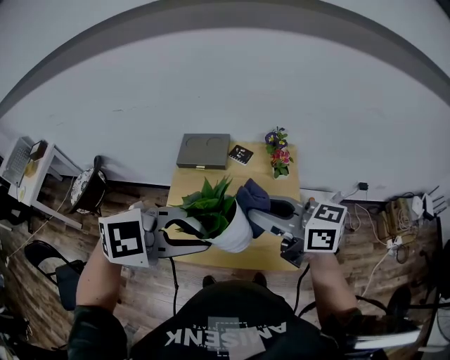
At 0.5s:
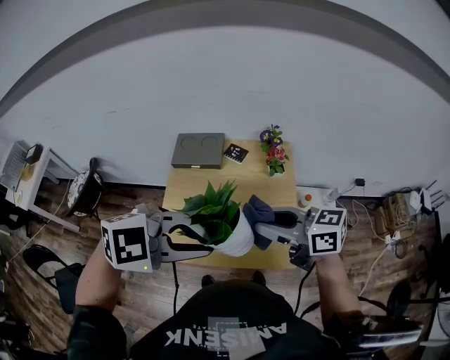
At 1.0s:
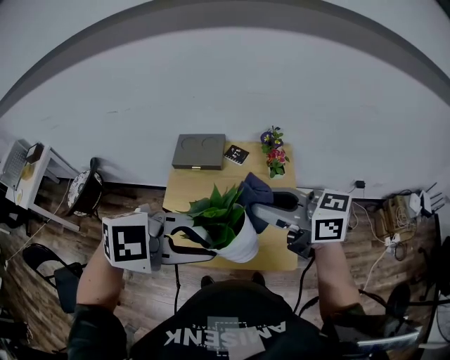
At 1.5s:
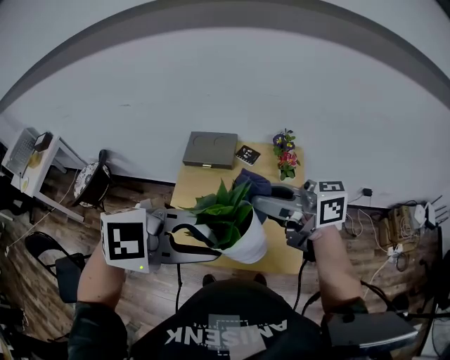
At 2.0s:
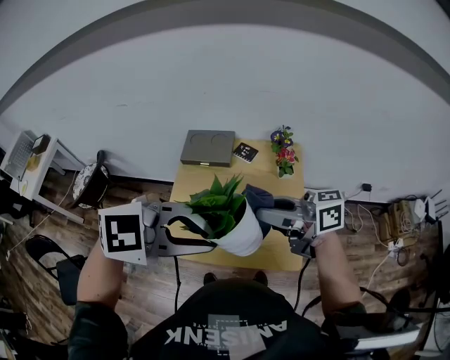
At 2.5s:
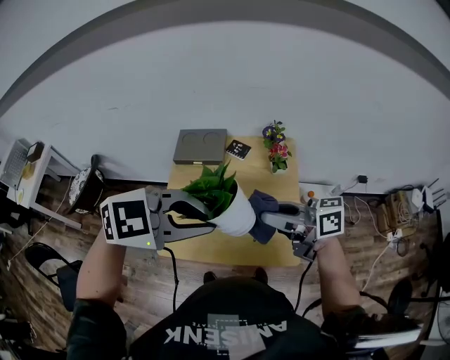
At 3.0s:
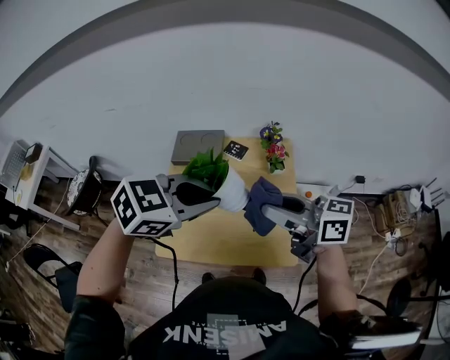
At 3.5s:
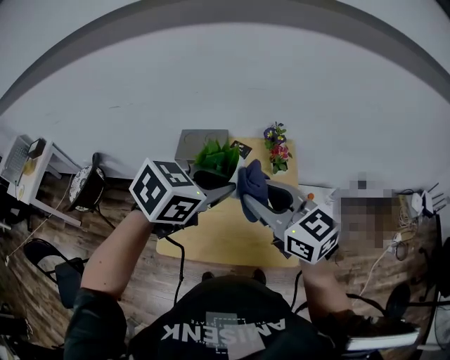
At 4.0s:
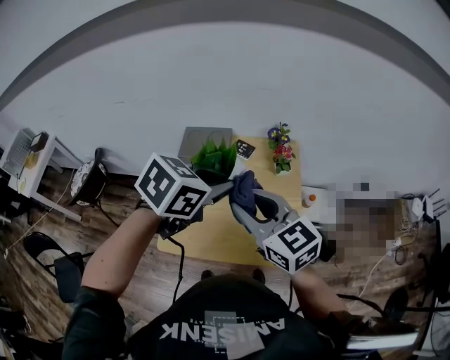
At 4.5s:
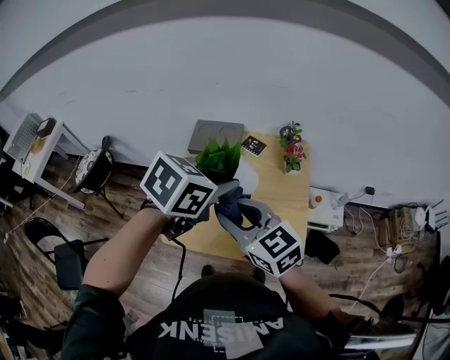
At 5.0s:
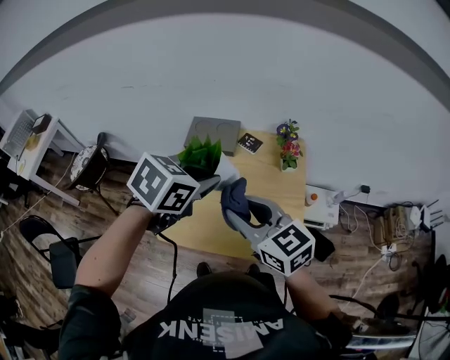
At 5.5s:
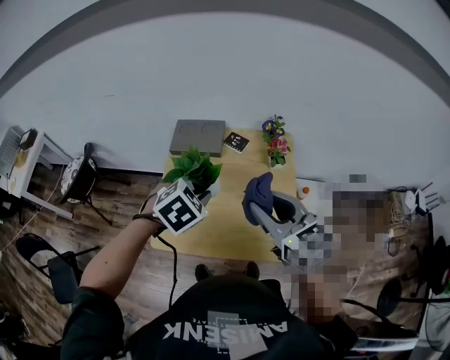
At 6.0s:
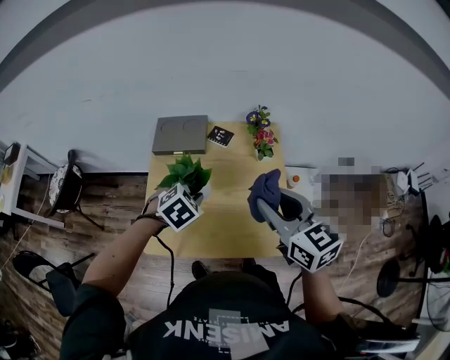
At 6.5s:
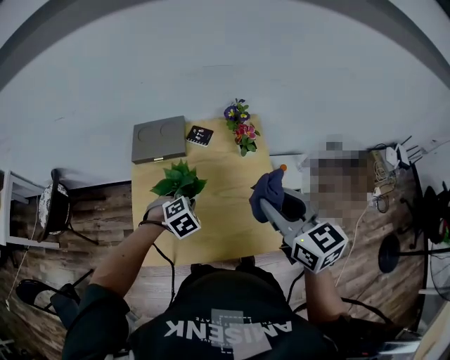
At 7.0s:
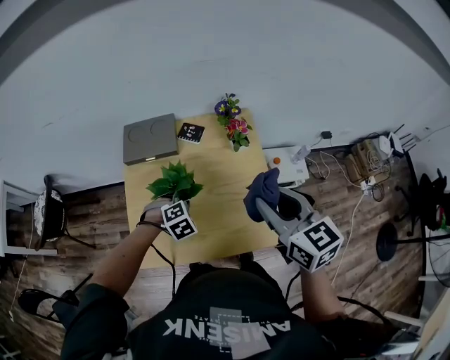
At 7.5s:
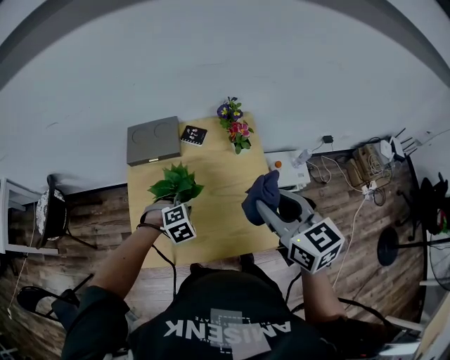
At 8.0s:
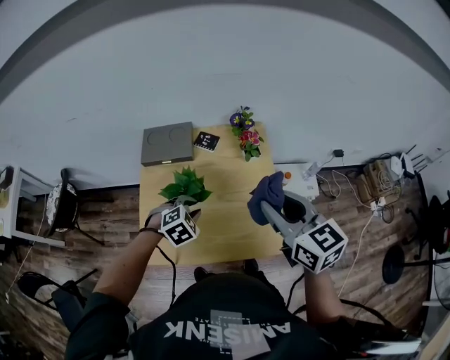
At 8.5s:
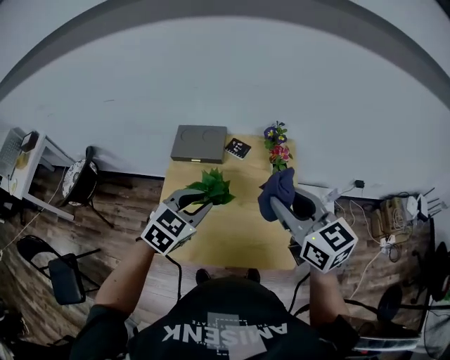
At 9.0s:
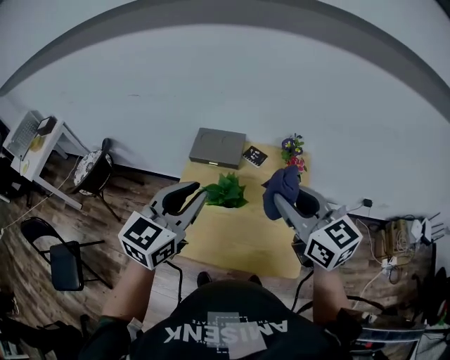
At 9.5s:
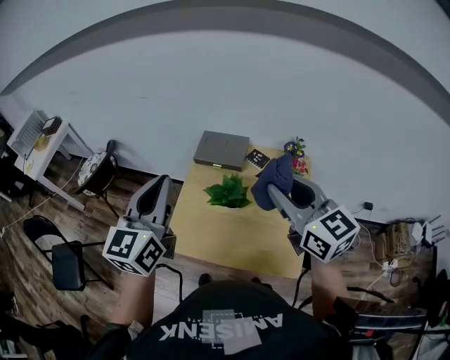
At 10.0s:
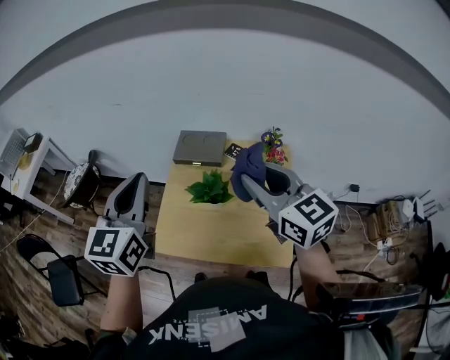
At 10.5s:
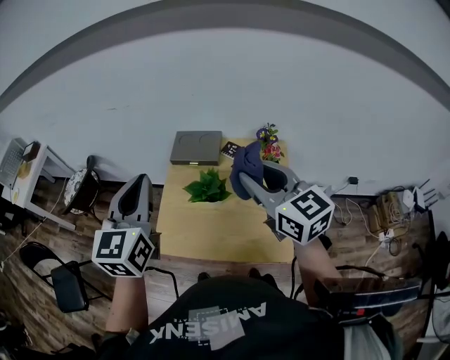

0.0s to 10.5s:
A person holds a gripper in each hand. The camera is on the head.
0.0s to 2.0s: The right gripper moves up and down over approximately 5 cm, changing direction 2 times, and turns by about 20 degrees.
2.0s to 4.0s: The right gripper changes its angle by approximately 50 degrees; the left gripper changes place by about 15 cm, and twists approximately 40 degrees counterclockwise, seen from behind.
4.0s to 6.5s: The right gripper heads to the right and downward, covering approximately 15 cm, and rotates approximately 20 degrees, while the left gripper is displaced downward by roughly 30 cm, and rotates about 40 degrees.
6.5s to 8.5s: The left gripper heads upward, covering some 20 cm, and turns by roughly 40 degrees. The right gripper moves about 5 cm.
8.5s to 10.5s: The left gripper moves upward and to the left, roughly 25 cm, angles its fingers upward, by approximately 30 degrees, and closes up. Meanwhile the right gripper goes roughly 10 cm to the left and upward.

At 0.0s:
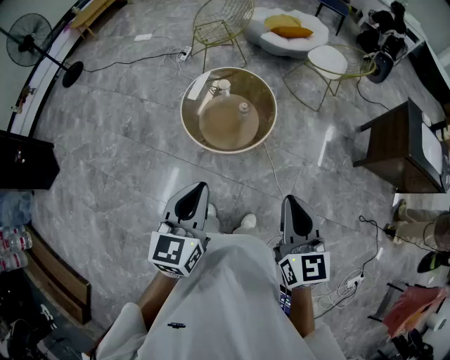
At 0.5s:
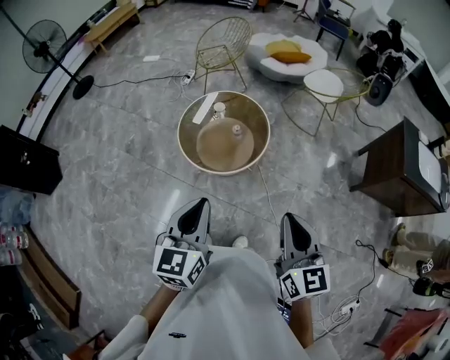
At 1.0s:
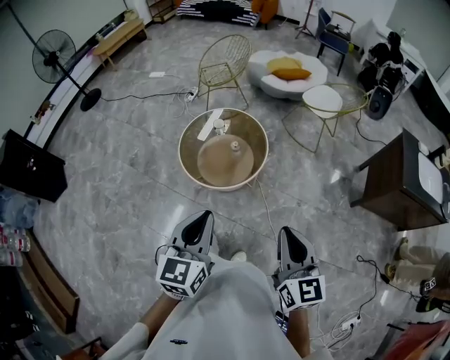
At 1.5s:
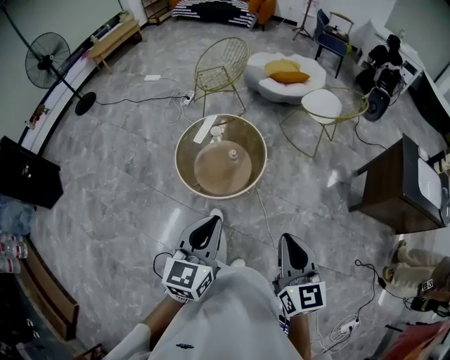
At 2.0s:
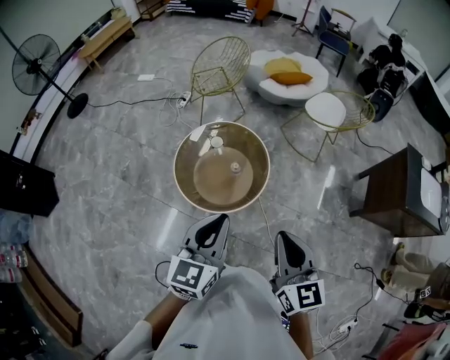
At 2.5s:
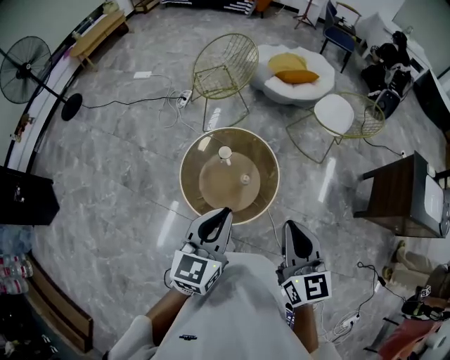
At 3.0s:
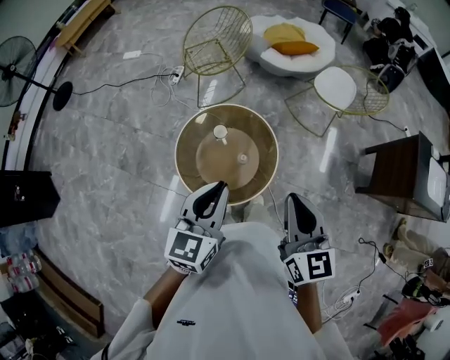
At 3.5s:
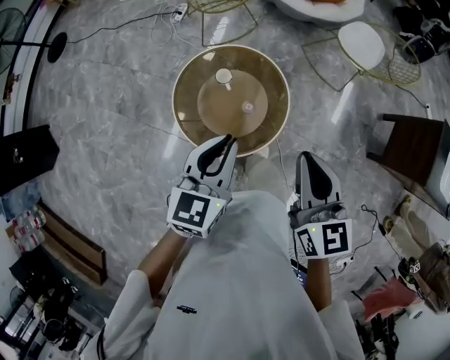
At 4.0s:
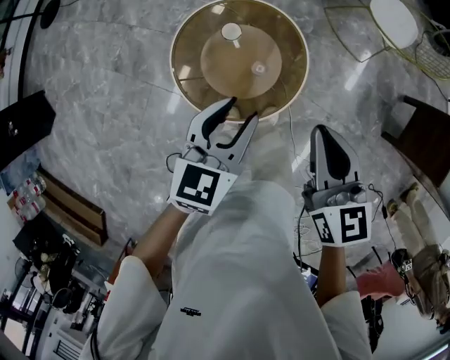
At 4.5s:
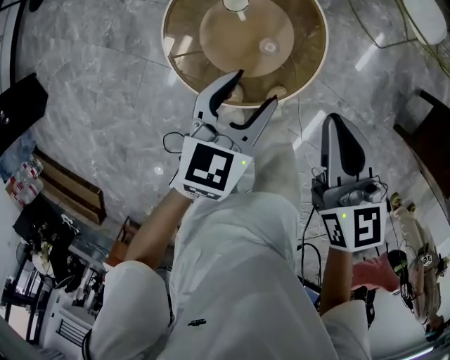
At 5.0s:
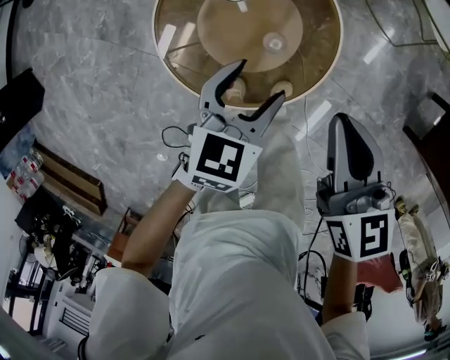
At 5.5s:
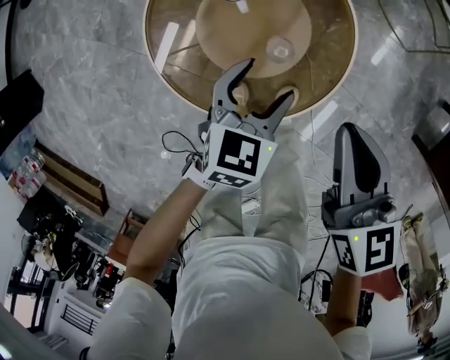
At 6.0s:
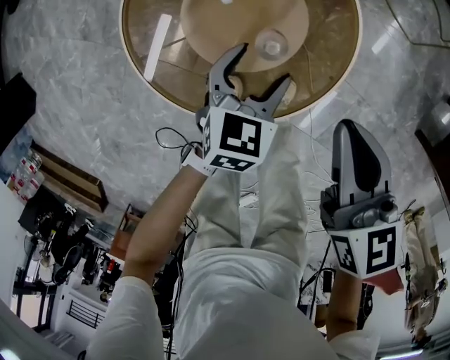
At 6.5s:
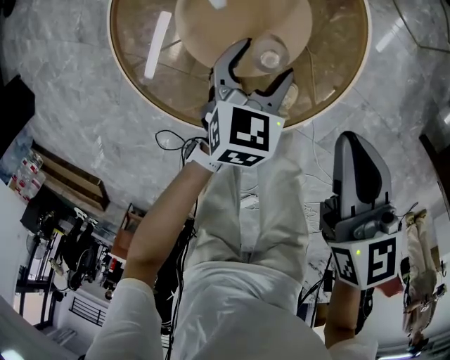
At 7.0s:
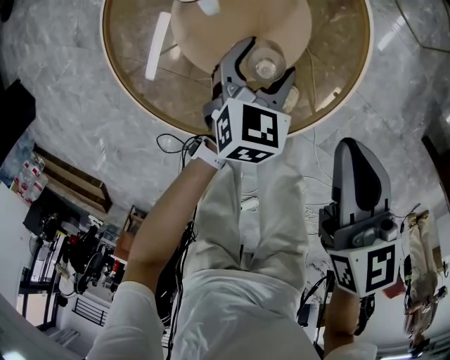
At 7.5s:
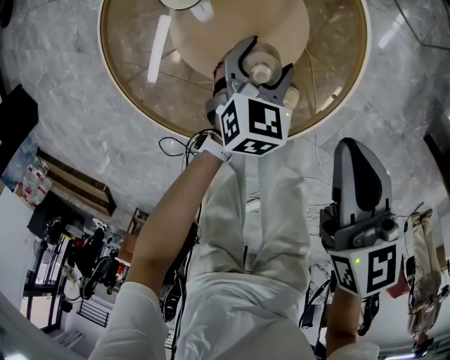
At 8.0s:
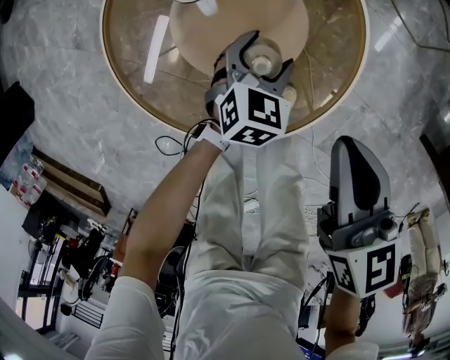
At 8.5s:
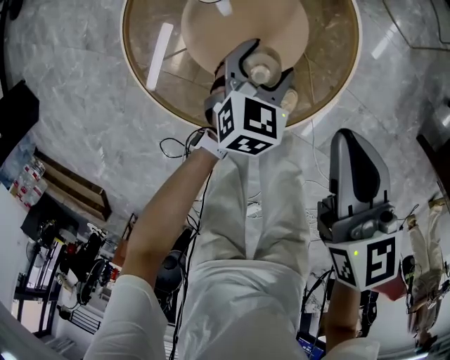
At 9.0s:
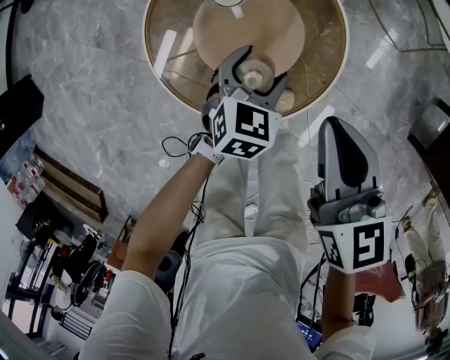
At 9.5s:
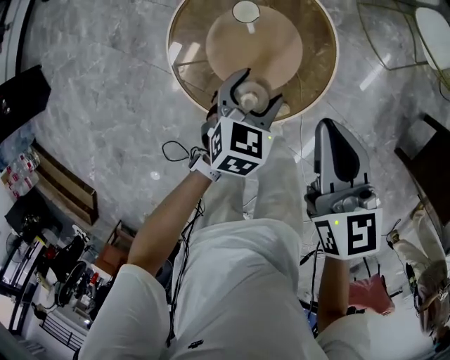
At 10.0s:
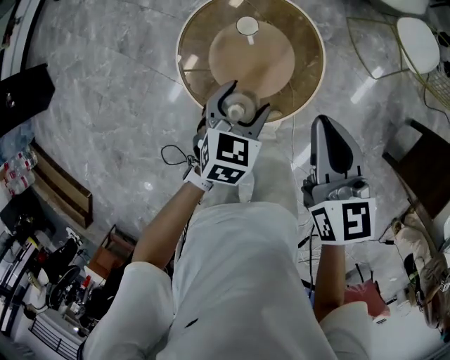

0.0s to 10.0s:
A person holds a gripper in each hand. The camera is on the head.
0.0s to 2.0s: The right gripper shifts some 15 cm forward. Meanwhile the left gripper goes some 15 cm forward and to the right.
2.0s to 4.0s: The grippers both shift forward and downward by roughly 25 cm. The left gripper opens.
4.0s to 6.0s: The two grippers go roughly 30 cm downward. The left gripper opens up.
6.0s to 8.0s: The left gripper goes approximately 10 cm downward.
8.0s to 10.0s: The two grippers go roughly 30 cm upward.

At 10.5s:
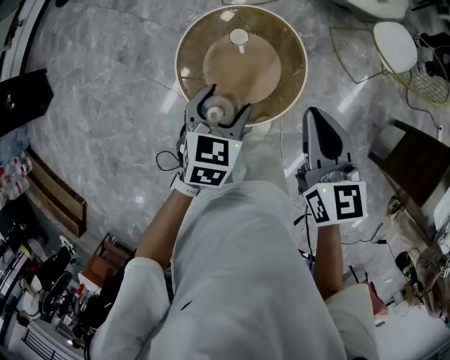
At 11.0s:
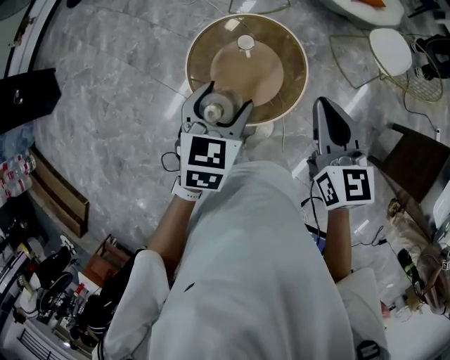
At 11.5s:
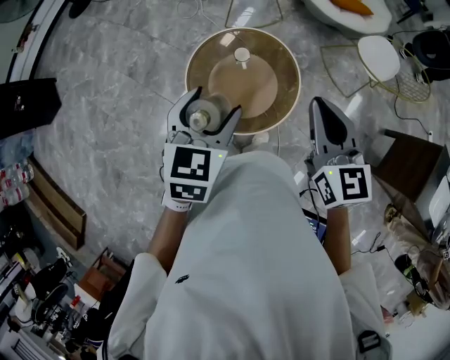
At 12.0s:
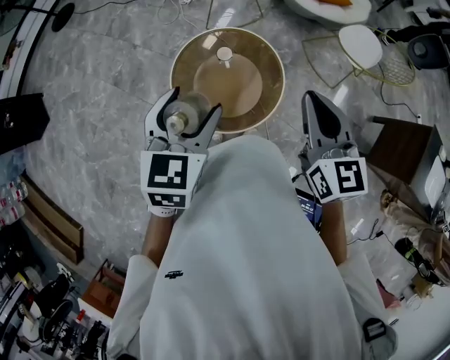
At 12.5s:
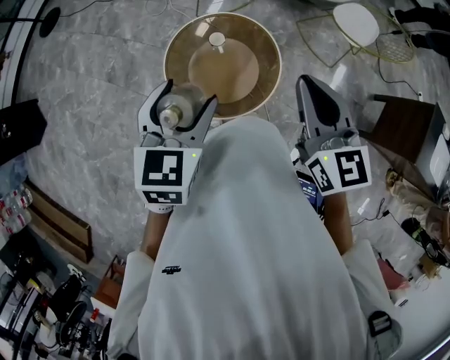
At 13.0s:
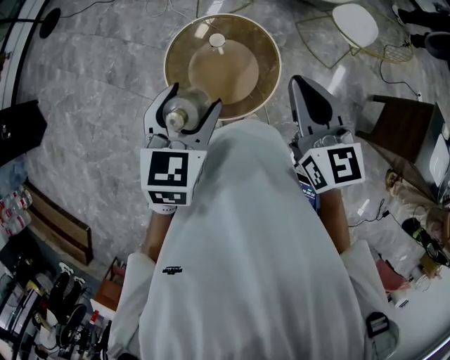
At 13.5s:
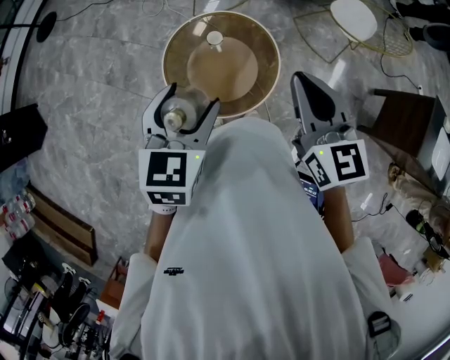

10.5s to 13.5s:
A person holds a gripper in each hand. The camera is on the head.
10.5s to 12.0s: The left gripper moves upward, roughly 20 cm. Meanwhile the right gripper shifts roughly 10 cm upward.
12.0s to 13.5s: The grippers make only small movements.

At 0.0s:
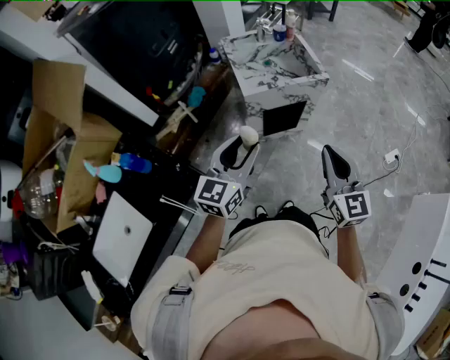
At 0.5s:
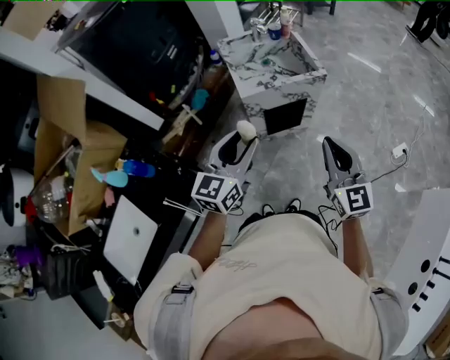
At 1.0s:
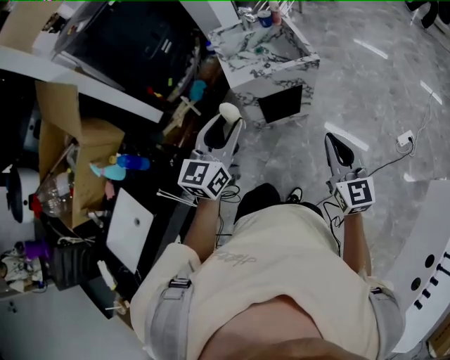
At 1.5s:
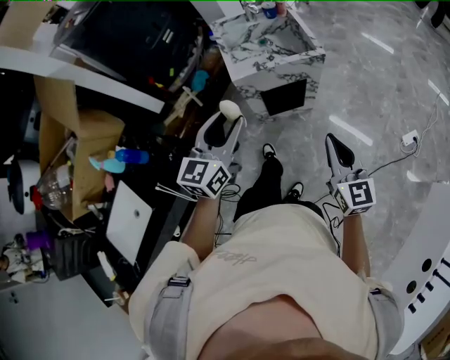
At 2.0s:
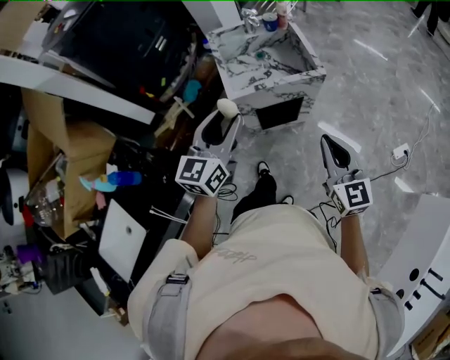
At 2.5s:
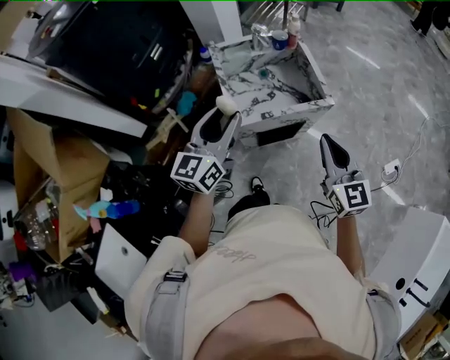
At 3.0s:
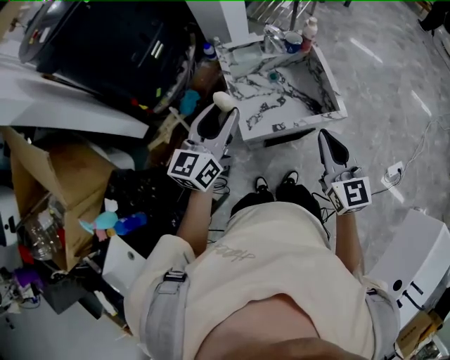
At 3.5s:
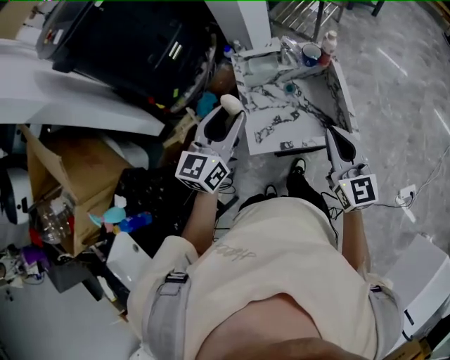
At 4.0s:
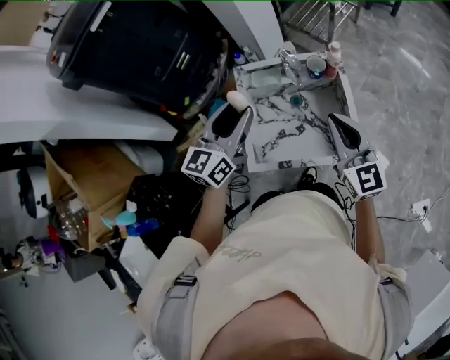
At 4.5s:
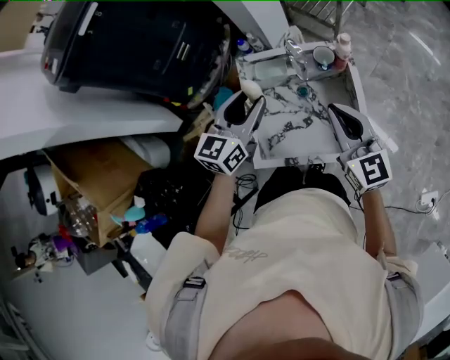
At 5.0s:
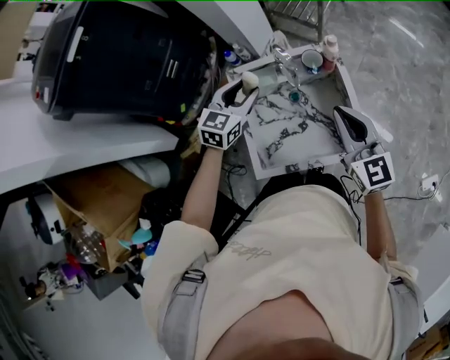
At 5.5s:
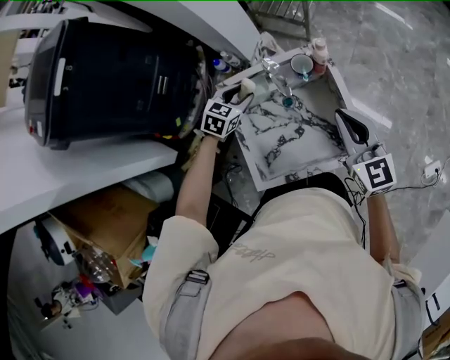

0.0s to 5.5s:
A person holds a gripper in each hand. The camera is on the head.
0.0s to 2.0s: The right gripper heads forward and to the right, covering roughly 15 cm; the left gripper moves forward, roughly 15 cm.
2.0s to 3.5s: The grippers both shift forward by some 25 cm.
3.5s to 5.5s: The right gripper shifts about 15 cm forward. The left gripper moves forward and downward, approximately 35 cm, and points its fingers about 40 degrees further downward.
